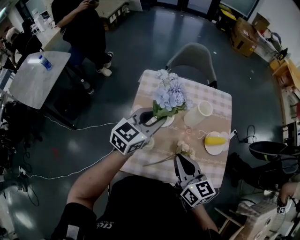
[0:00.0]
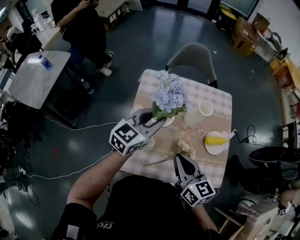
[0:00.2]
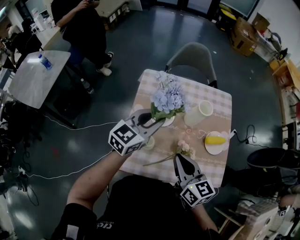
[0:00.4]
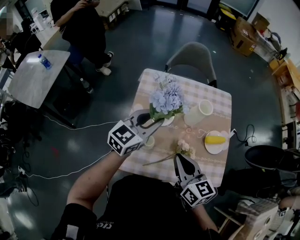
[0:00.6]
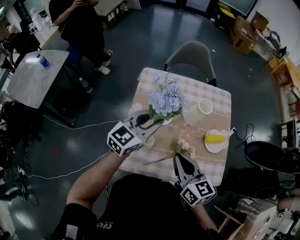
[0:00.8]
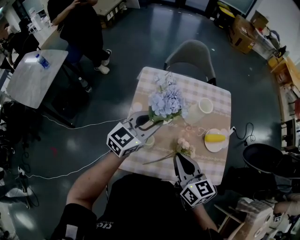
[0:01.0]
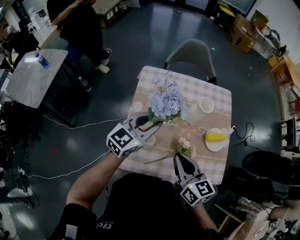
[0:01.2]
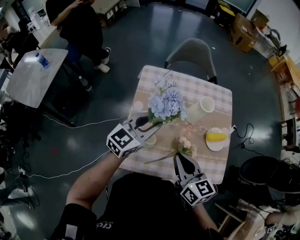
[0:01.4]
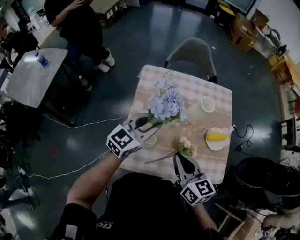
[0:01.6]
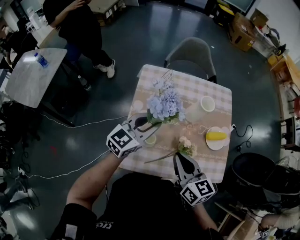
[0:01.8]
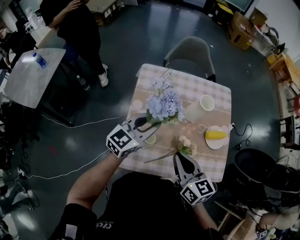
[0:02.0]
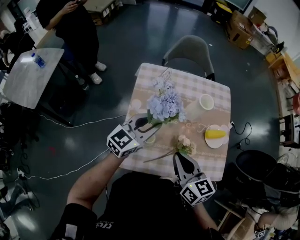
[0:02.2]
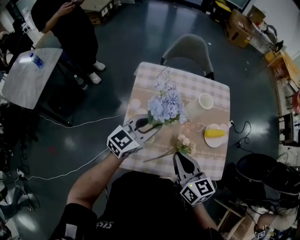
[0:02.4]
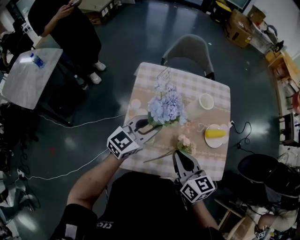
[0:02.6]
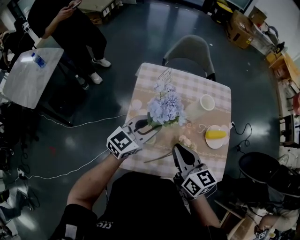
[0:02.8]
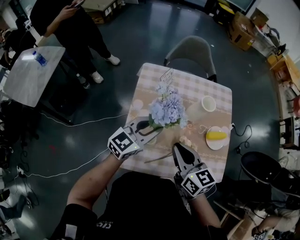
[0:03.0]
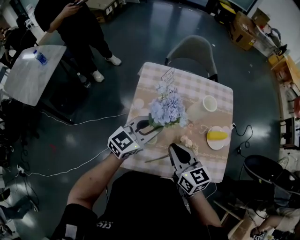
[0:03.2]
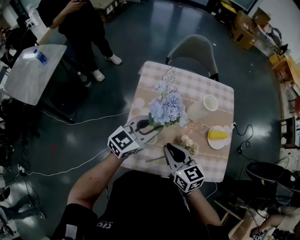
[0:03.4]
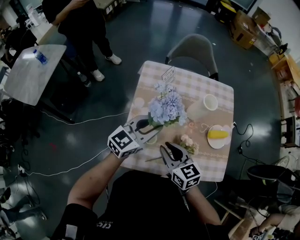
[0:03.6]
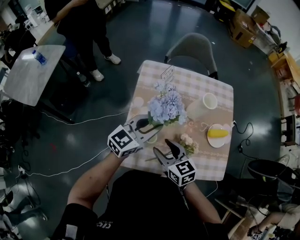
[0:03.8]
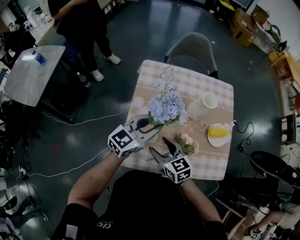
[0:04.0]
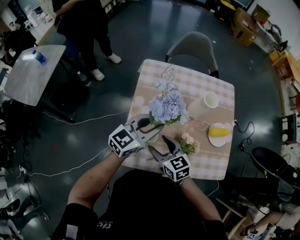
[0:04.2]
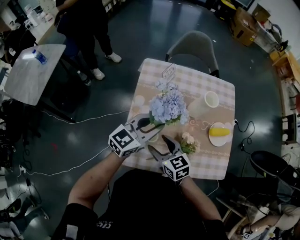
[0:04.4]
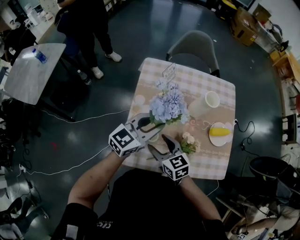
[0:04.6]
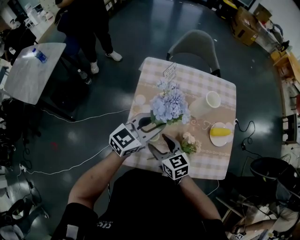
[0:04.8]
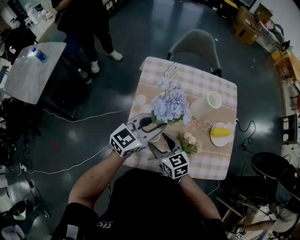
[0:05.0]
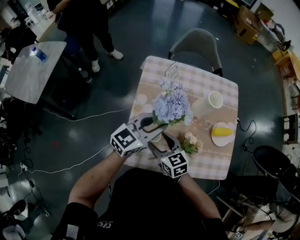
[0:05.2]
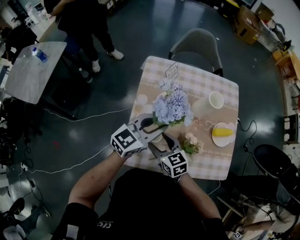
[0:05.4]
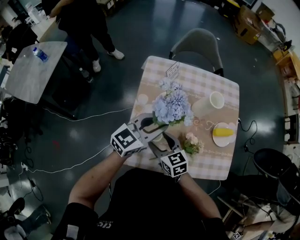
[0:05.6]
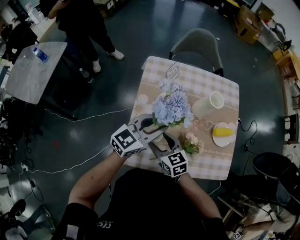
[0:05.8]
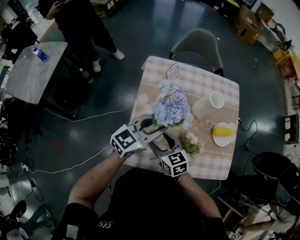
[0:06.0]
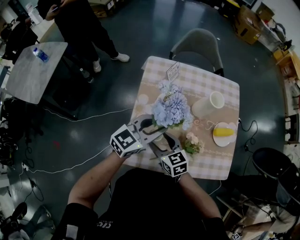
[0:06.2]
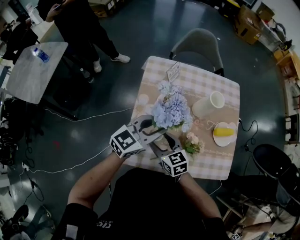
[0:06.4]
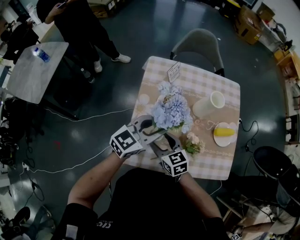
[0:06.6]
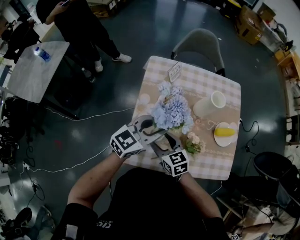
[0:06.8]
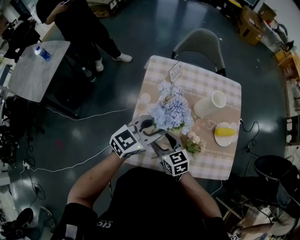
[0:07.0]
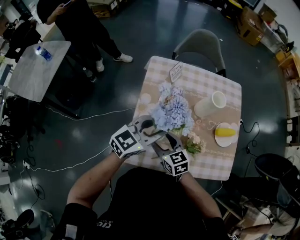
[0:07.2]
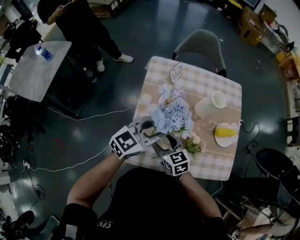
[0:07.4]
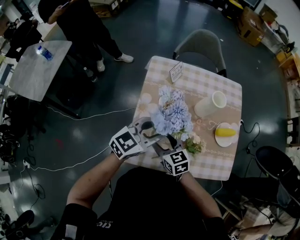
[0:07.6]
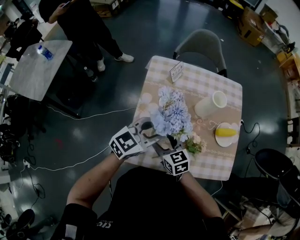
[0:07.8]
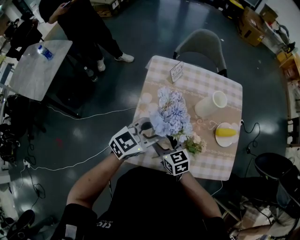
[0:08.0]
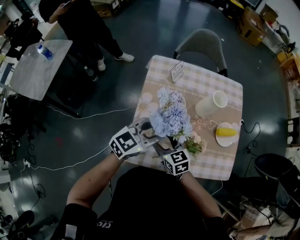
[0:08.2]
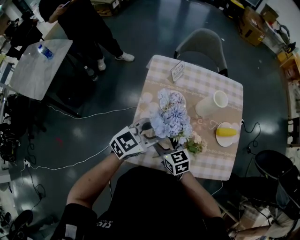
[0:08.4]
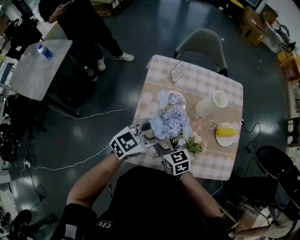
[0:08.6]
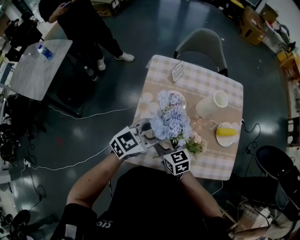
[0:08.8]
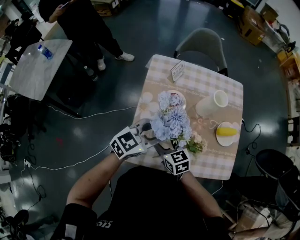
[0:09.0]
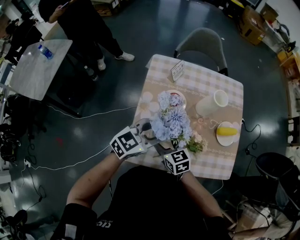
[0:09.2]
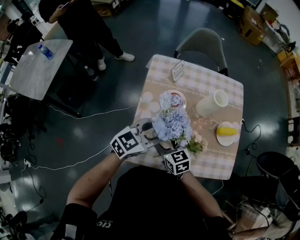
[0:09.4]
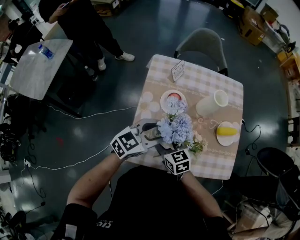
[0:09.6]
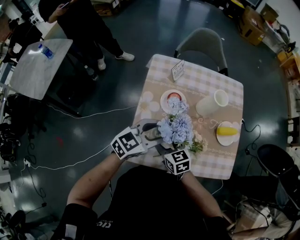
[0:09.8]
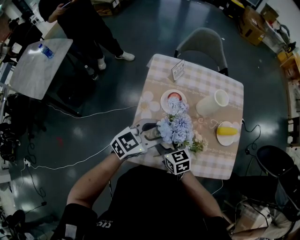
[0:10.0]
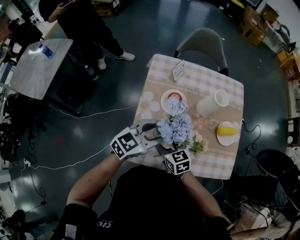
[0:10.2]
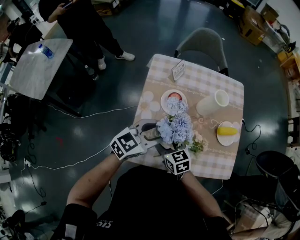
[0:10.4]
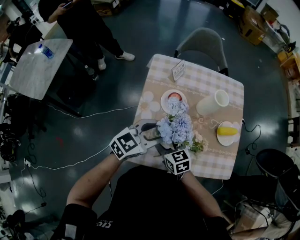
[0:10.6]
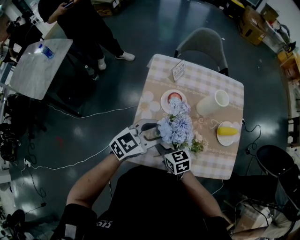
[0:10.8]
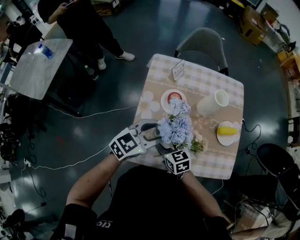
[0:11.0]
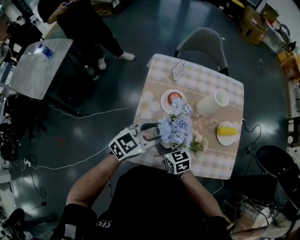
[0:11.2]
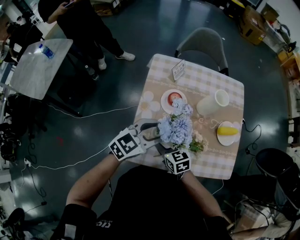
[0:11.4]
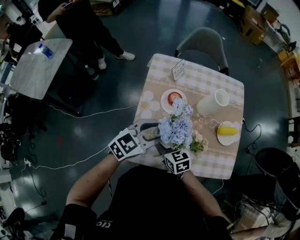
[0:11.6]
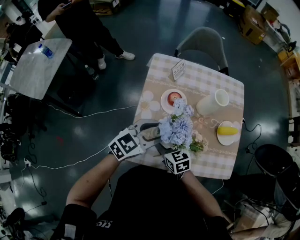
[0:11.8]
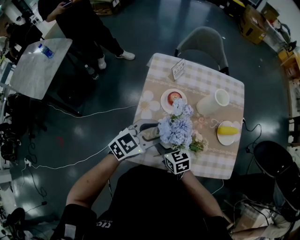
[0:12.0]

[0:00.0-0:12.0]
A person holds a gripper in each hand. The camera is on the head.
0:00.0 to 0:01.6: The left gripper moves roughly 5 cm.
0:01.6 to 0:03.0: The grippers move only a little.
0:03.0 to 0:04.4: The right gripper goes some 15 cm downward and to the left, and opens up.
0:04.4 to 0:09.0: The grippers make only small movements.
0:09.0 to 0:10.4: Neither gripper changes place.
0:10.4 to 0:12.0: The grippers move only a little.

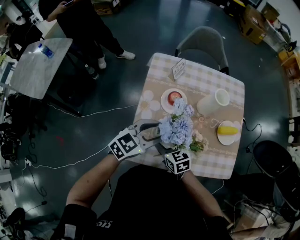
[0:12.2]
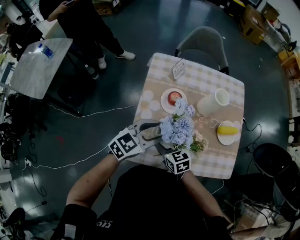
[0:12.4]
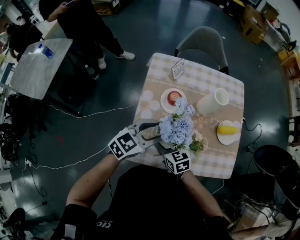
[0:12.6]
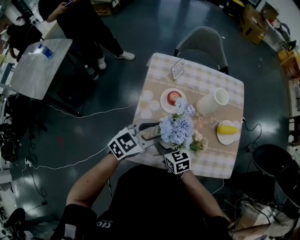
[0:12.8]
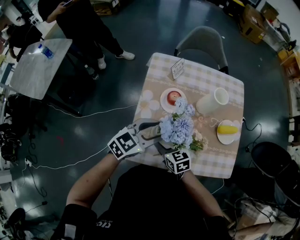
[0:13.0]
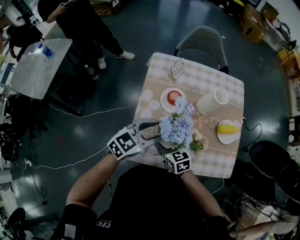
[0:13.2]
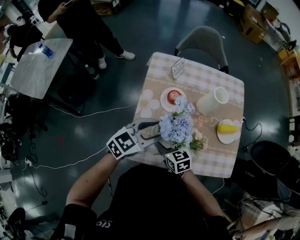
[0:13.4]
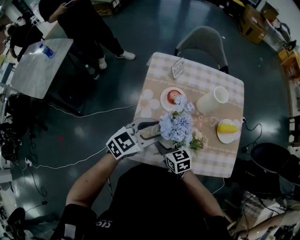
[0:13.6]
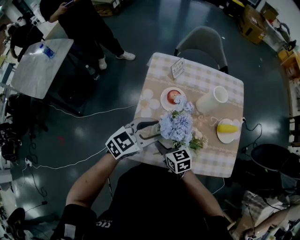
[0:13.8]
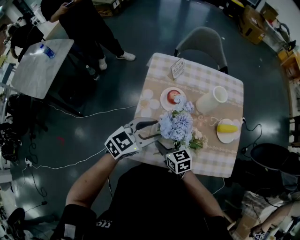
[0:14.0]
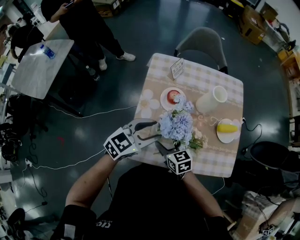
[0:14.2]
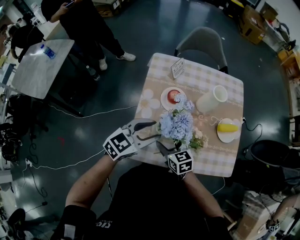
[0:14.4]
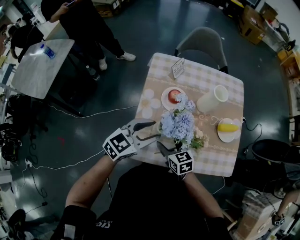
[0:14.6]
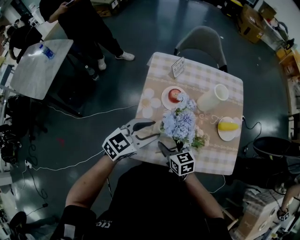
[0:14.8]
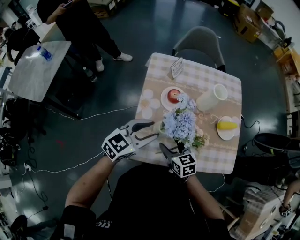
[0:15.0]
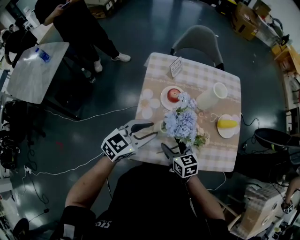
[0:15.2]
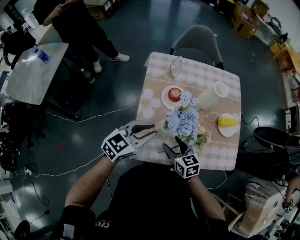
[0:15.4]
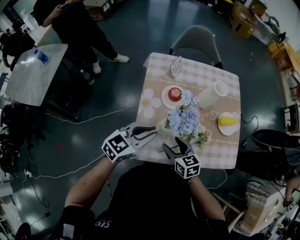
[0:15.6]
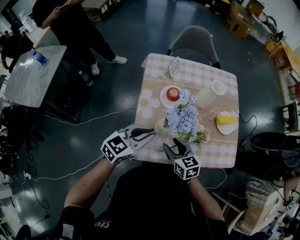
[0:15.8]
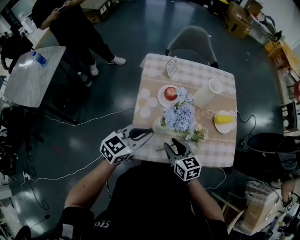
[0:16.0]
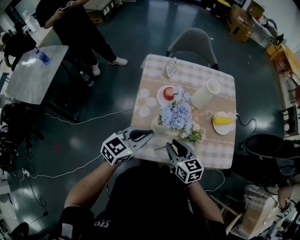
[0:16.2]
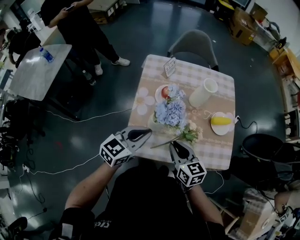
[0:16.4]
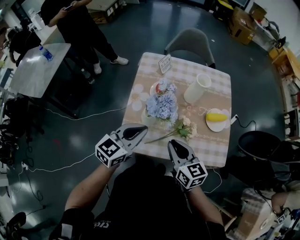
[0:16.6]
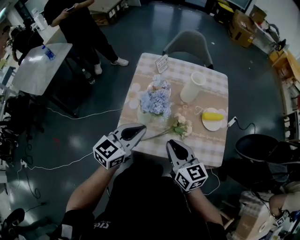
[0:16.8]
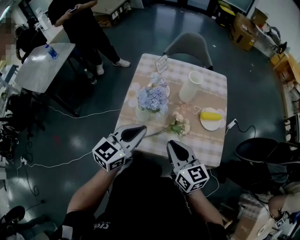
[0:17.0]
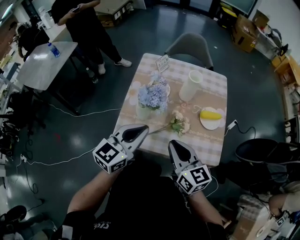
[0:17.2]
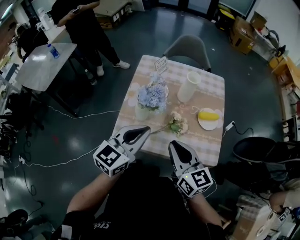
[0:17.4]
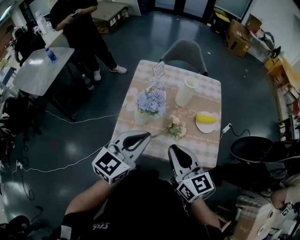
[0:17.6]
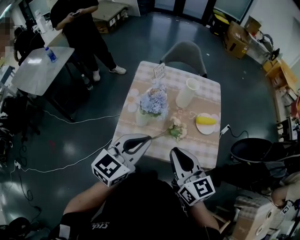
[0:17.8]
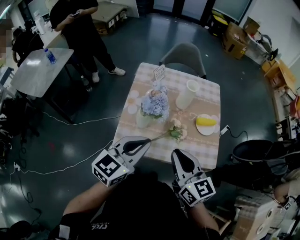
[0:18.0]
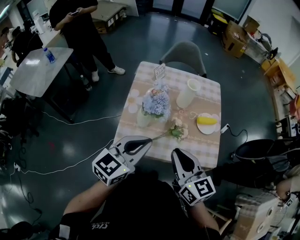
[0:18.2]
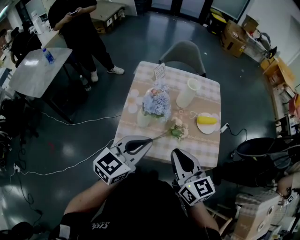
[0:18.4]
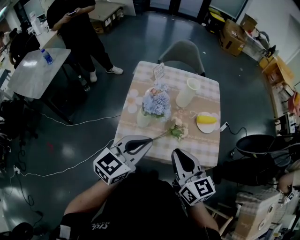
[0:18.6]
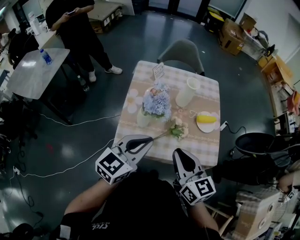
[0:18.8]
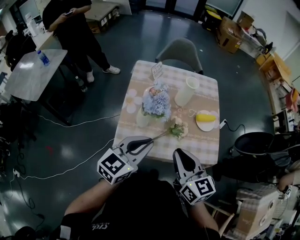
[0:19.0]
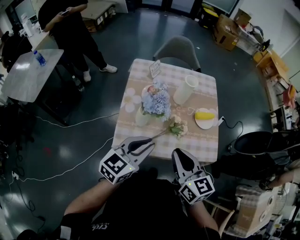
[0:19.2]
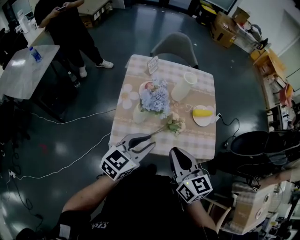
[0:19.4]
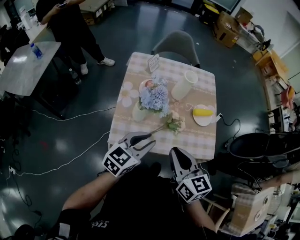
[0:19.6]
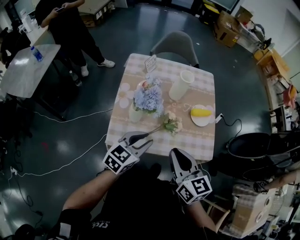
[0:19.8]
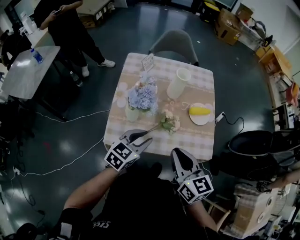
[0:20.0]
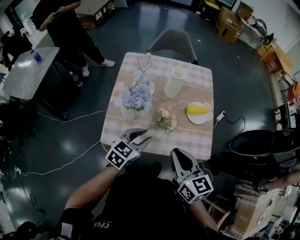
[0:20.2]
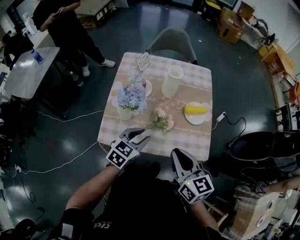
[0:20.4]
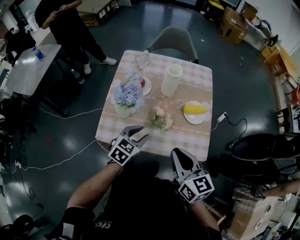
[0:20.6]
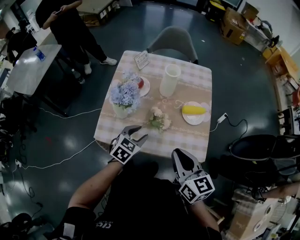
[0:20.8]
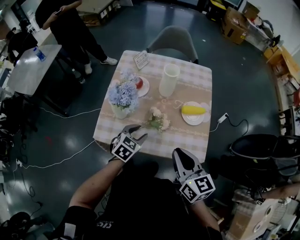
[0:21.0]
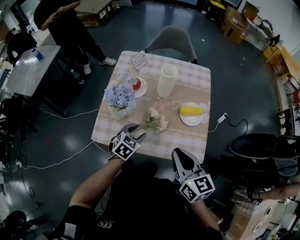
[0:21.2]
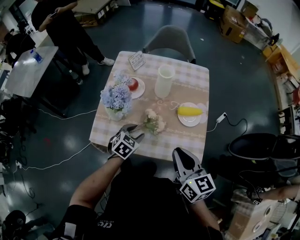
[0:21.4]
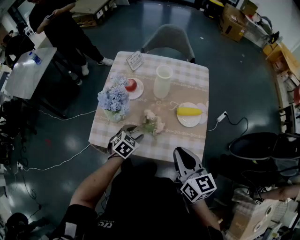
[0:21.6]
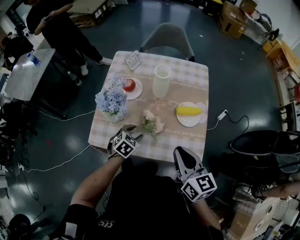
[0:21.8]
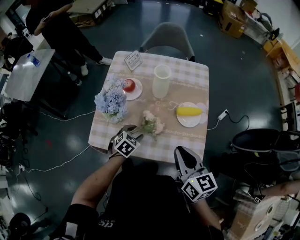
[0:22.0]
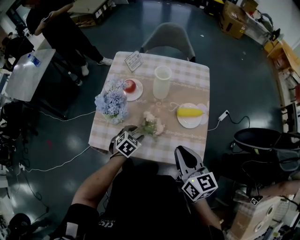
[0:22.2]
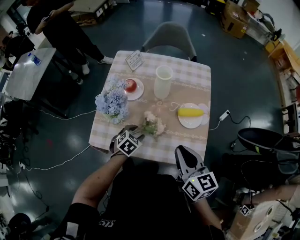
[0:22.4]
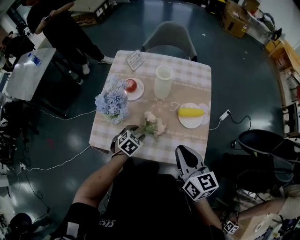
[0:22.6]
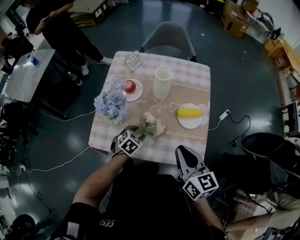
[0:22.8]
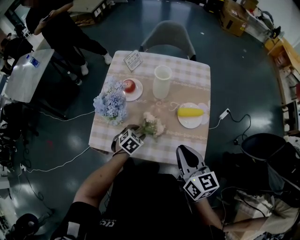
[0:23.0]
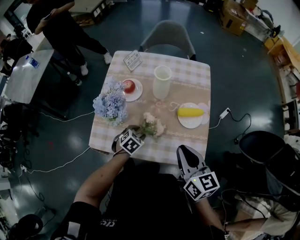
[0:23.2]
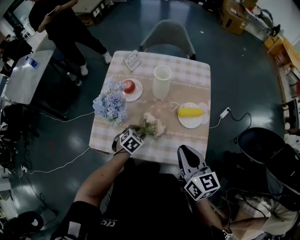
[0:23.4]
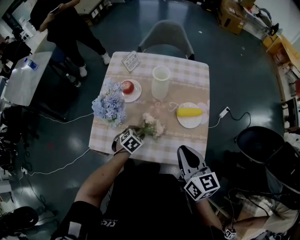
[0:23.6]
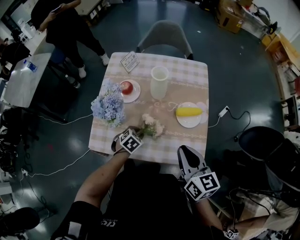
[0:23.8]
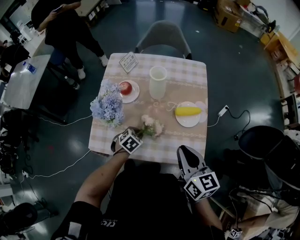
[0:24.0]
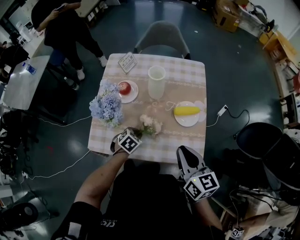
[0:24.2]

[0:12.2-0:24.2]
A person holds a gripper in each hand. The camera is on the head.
0:12.2 to 0:15.2: The grippers move only a little.
0:15.2 to 0:16.6: The right gripper is displaced upward and to the right by roughly 15 cm, and closes. Meanwhile the left gripper heads backward and to the right, covering roughly 10 cm, and closes its fingers.
0:16.6 to 0:18.2: Both grippers move upward and backward, roughly 15 cm.
0:18.2 to 0:19.8: The left gripper moves downward, roughly 10 cm.
0:19.8 to 0:21.2: The left gripper heads downward, to the right and forward, covering approximately 15 cm, and rotates roughly 30 degrees, while the right gripper shifts approximately 15 cm to the right.
0:21.2 to 0:22.6: The right gripper travels forward by approximately 5 cm. The left gripper is displaced downward by some 10 cm.
0:22.6 to 0:24.2: The left gripper closes its fingers.
